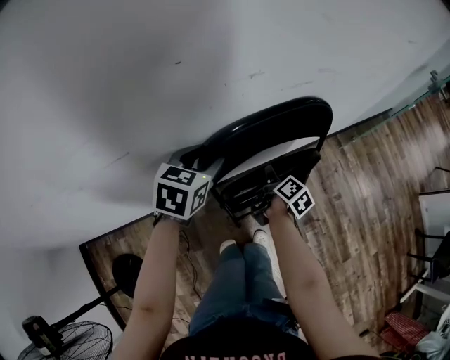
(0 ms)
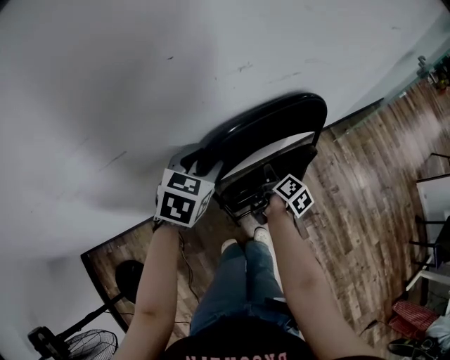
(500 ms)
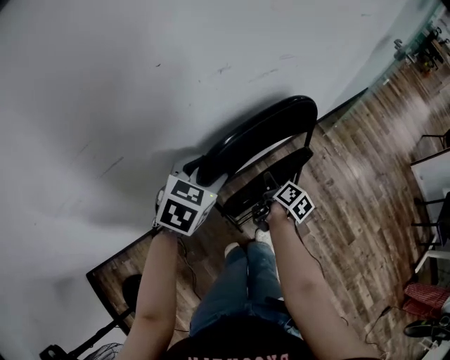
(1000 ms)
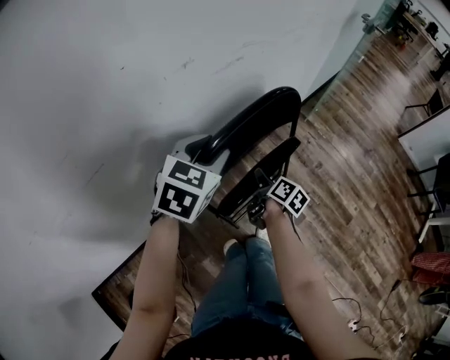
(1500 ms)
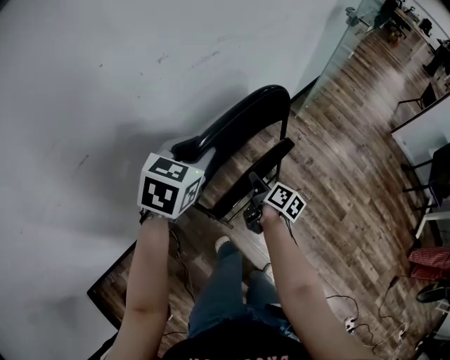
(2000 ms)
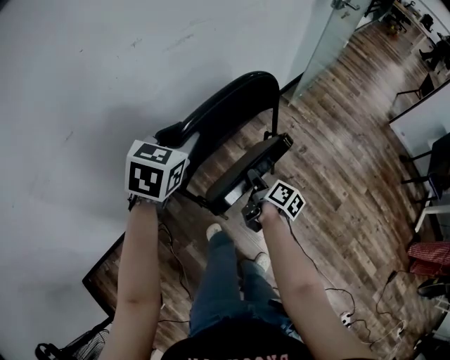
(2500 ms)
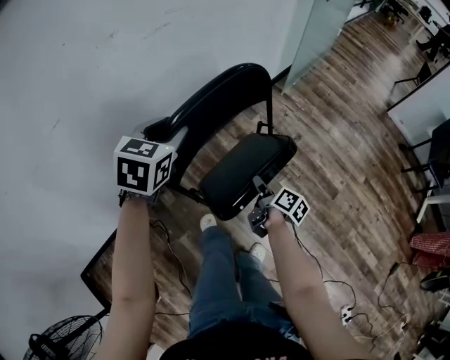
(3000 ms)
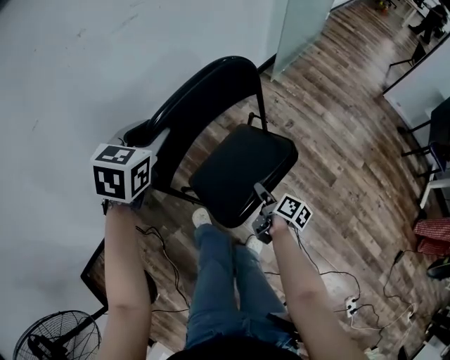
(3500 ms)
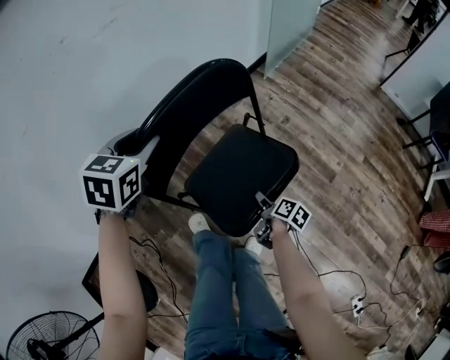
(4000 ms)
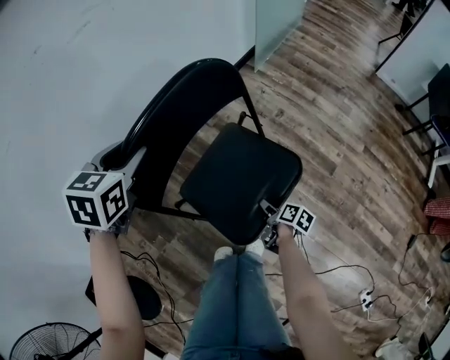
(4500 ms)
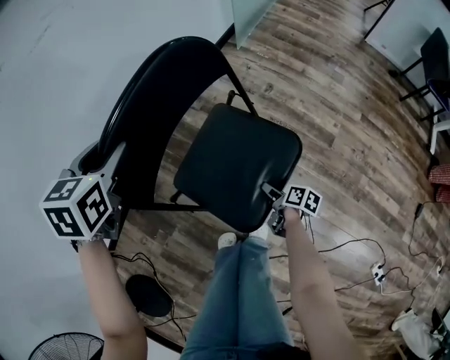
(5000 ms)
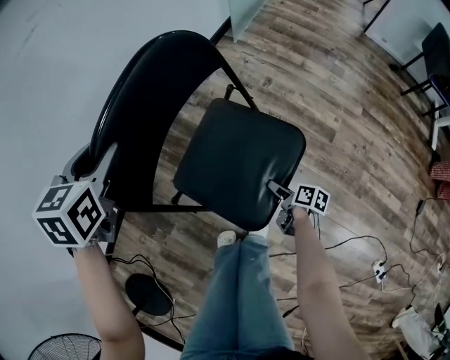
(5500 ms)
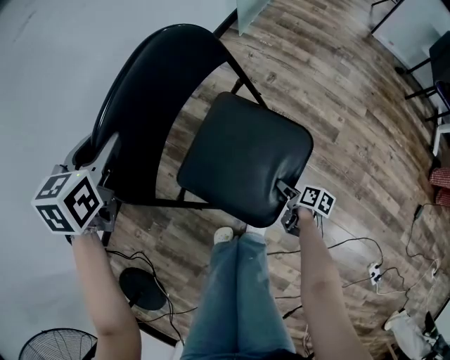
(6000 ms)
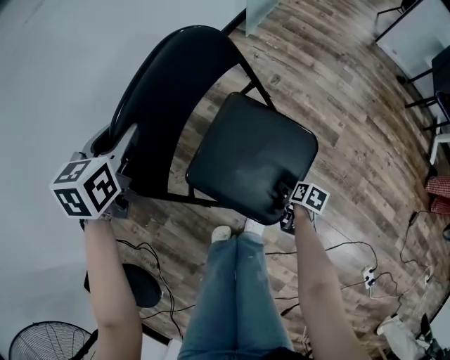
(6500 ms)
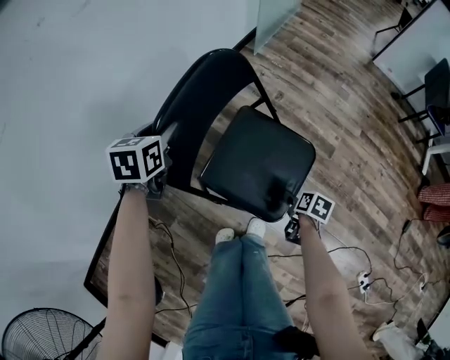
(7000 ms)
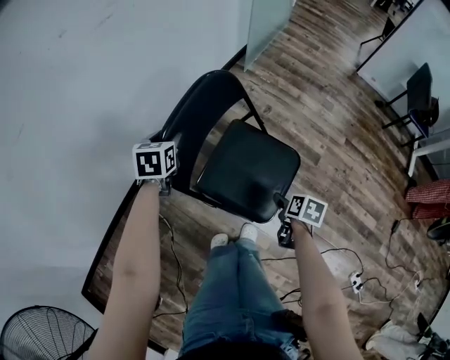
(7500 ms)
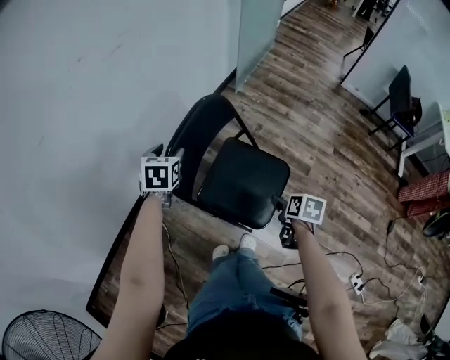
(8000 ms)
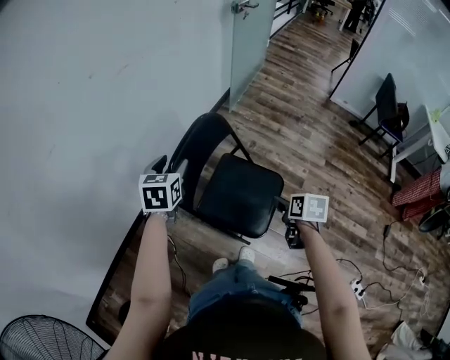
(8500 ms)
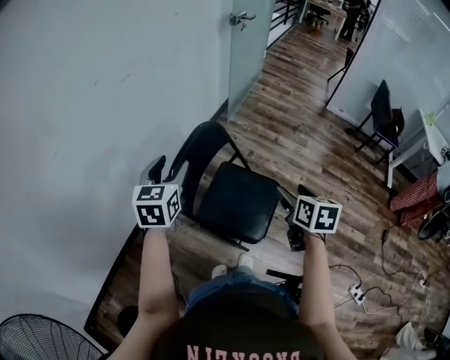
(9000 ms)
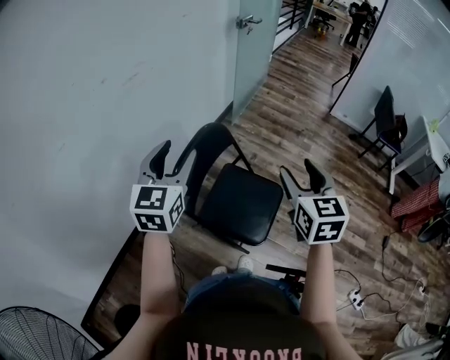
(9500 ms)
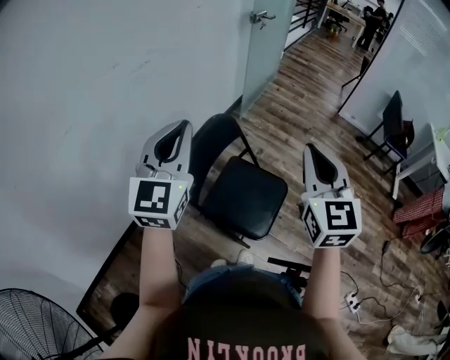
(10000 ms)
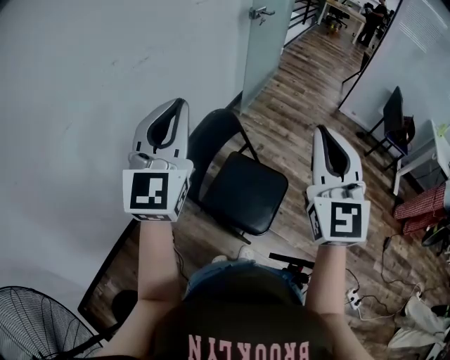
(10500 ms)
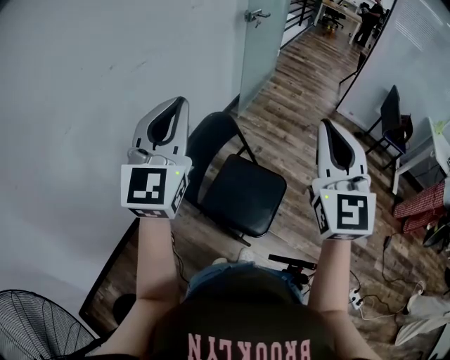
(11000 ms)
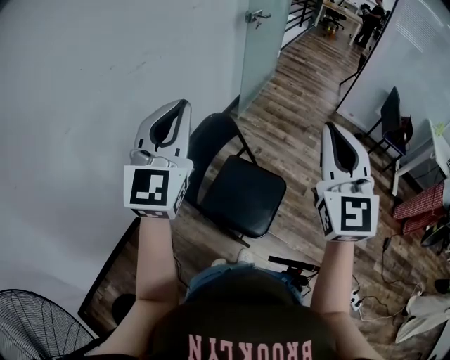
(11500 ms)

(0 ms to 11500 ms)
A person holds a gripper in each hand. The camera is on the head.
0 ms - 2000 ms: The left gripper shifts about 15 cm to the right and upward, and changes its angle by roughly 20 degrees. Meanwhile the right gripper is displaced backward and to the right by approximately 15 cm.
2000 ms - 4000 ms: The right gripper goes roughly 40 cm backward, to the right and downward. Meanwhile the left gripper moves to the right, backward and downward, some 20 cm.
4000 ms - 6000 ms: The left gripper is displaced downward by about 10 cm. Meanwhile the right gripper travels downward, to the right and backward by approximately 20 cm.
6000 ms - 7500 ms: The right gripper is displaced upward by roughly 25 cm, and rotates approximately 30 degrees.
7500 ms - 9500 ms: Both grippers travel together upward, roughly 35 cm. The right gripper points its fingers approximately 40 degrees further upward; the left gripper tips its fingers upward by some 40 degrees.
9500 ms - 11500 ms: Both grippers move upward, about 15 cm. The right gripper rotates roughly 30 degrees, and closes its fingers, while the left gripper rotates about 20 degrees, and closes.

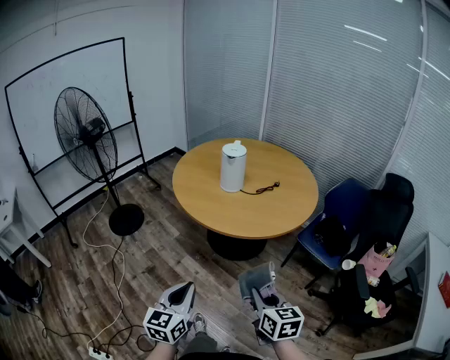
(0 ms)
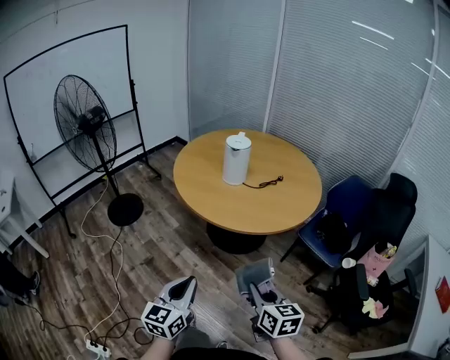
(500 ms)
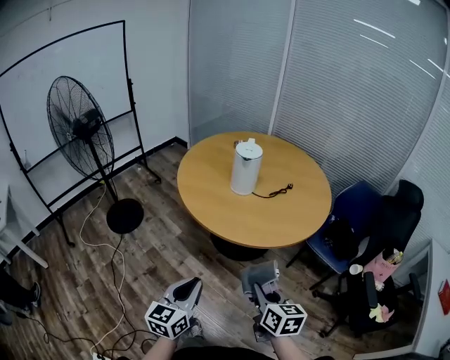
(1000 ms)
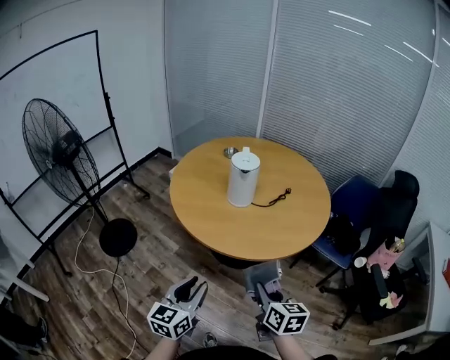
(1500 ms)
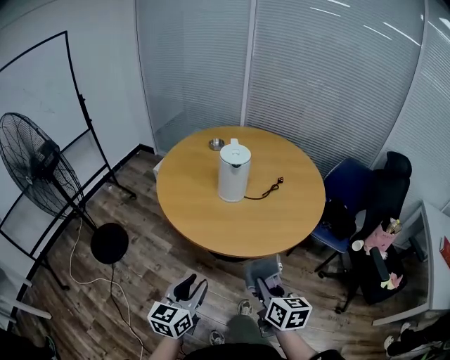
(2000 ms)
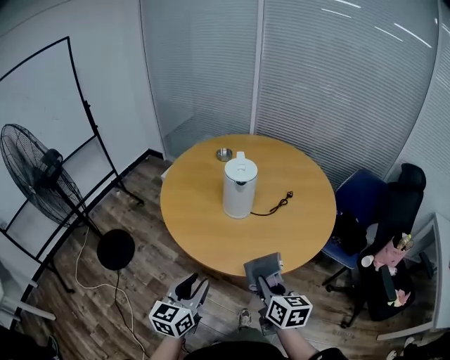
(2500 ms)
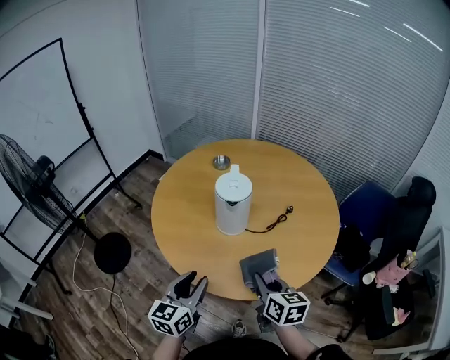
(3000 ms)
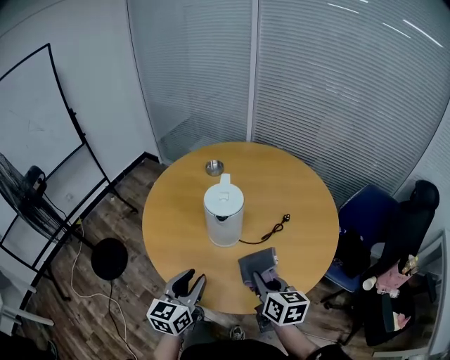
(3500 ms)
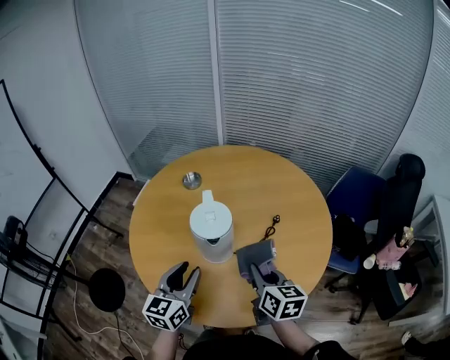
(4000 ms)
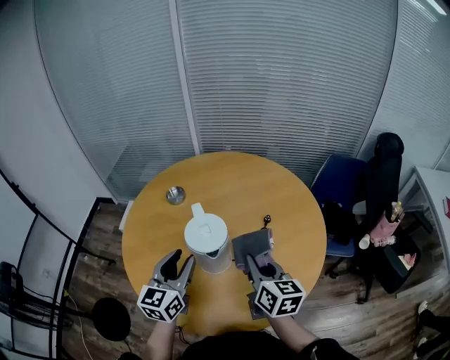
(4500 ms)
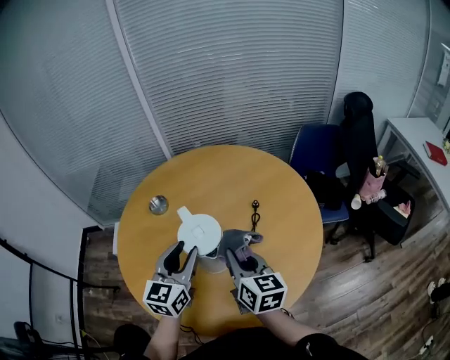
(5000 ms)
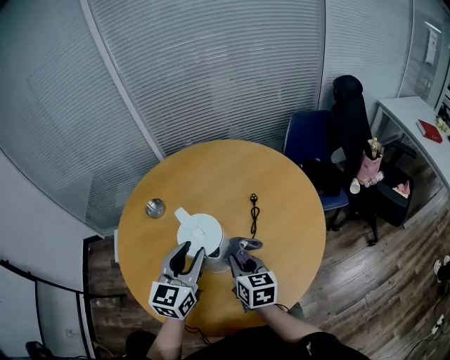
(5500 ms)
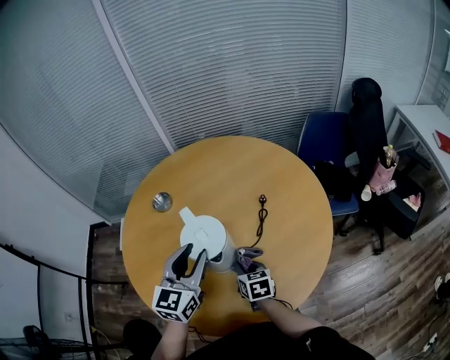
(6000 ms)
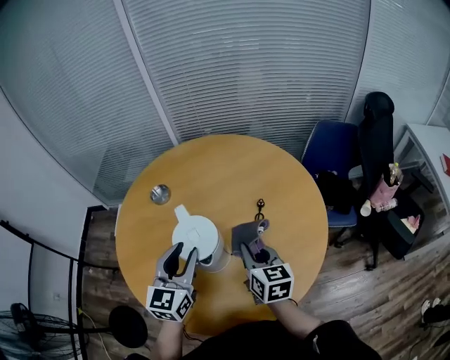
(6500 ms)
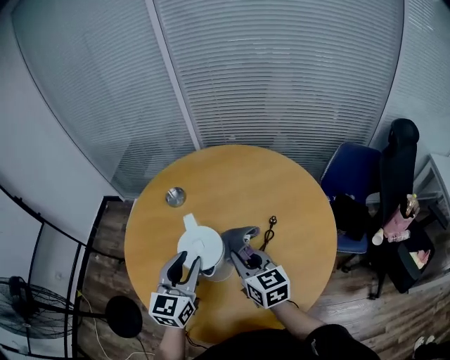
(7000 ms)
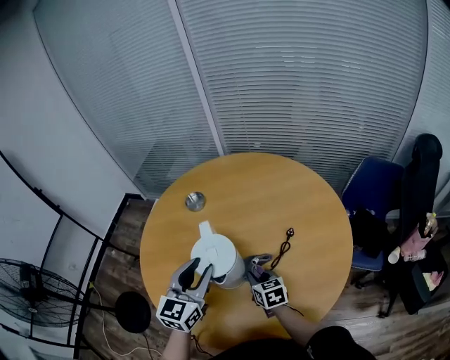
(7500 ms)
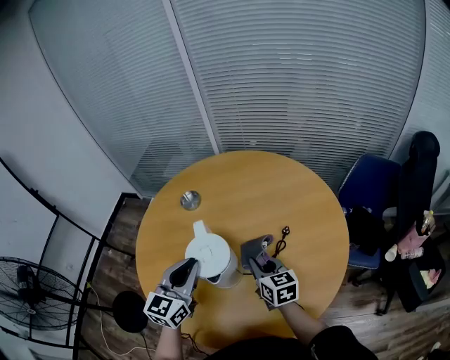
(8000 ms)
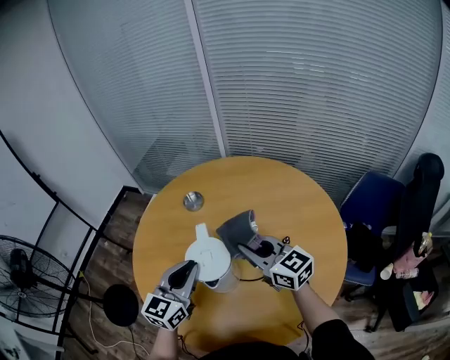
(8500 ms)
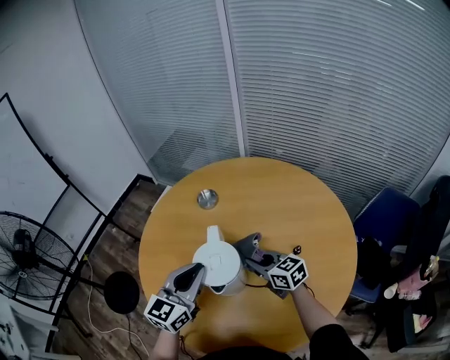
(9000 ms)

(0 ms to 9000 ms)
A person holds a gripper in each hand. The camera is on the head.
0 ms - 2000 ms: The grippers both shift forward and to the left by roughly 25 cm. The left gripper turns by approximately 20 degrees, and opens its fingers, while the right gripper turns by some 20 degrees.
2000 ms - 4500 ms: Both grippers move forward, roughly 40 cm. The right gripper changes its angle by approximately 20 degrees.
4500 ms - 7000 ms: The left gripper changes place by some 5 cm; the right gripper travels downward and back again, some 20 cm each way.
7000 ms - 9000 ms: The right gripper goes up and down, approximately 20 cm each way, reversing 2 times, and swivels roughly 40 degrees. The left gripper closes its fingers.

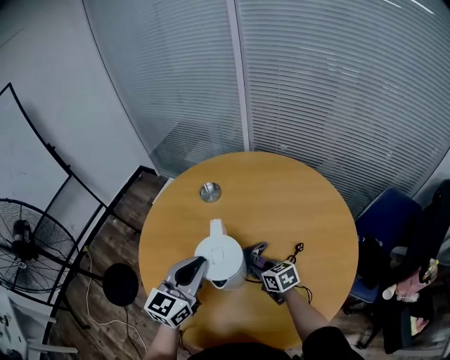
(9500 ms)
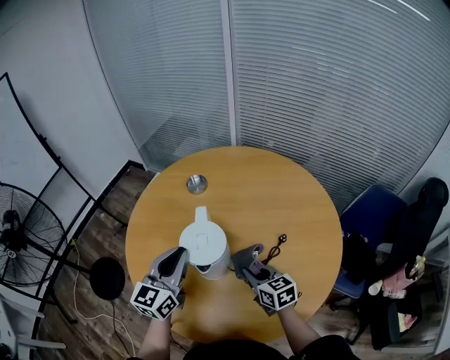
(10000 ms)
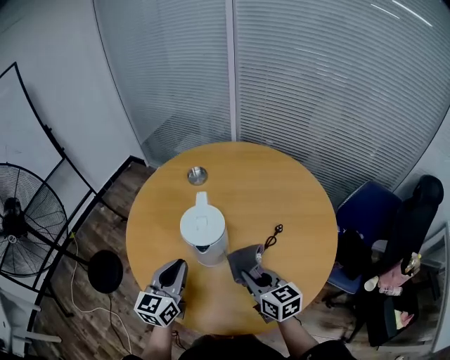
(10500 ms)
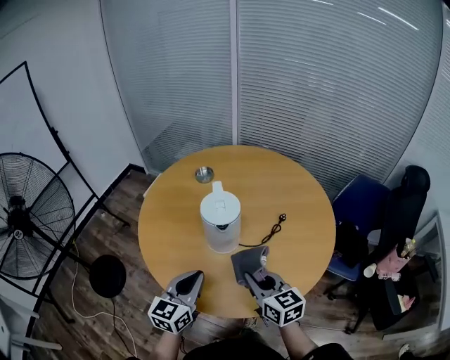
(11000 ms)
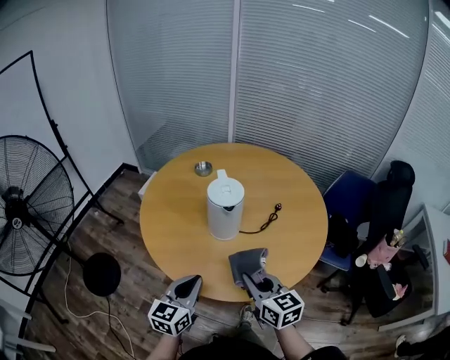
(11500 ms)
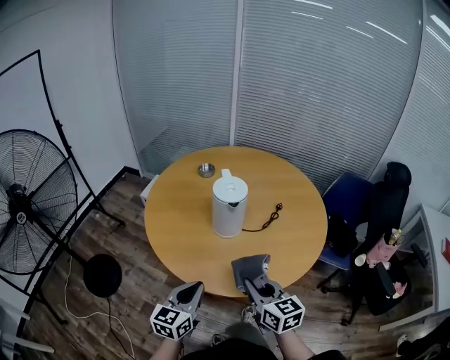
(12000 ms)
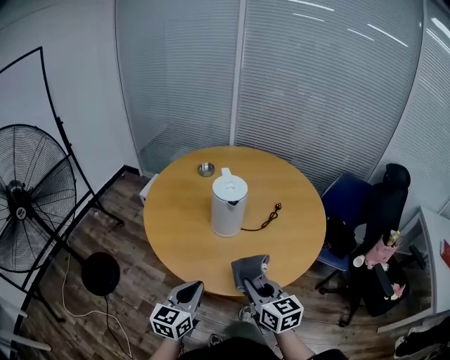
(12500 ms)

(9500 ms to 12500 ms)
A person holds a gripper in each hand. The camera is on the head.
9500 ms - 11000 ms: The right gripper travels backward and upward by approximately 30 cm, and changes its angle by roughly 20 degrees, while the left gripper is displaced backward by approximately 20 cm.
11000 ms - 12500 ms: Both grippers move backward, roughly 15 cm.

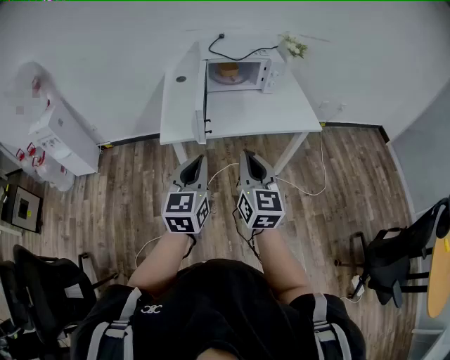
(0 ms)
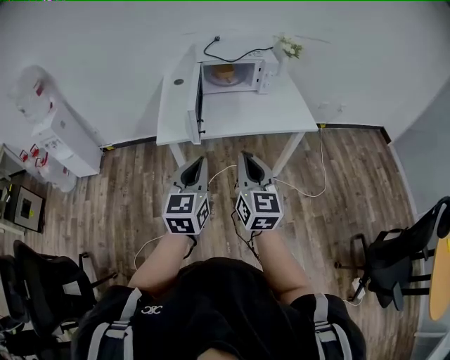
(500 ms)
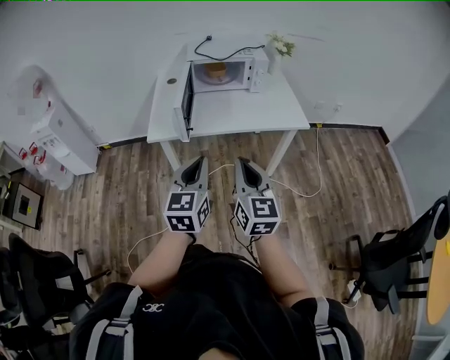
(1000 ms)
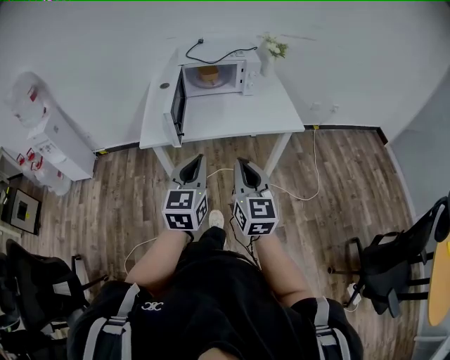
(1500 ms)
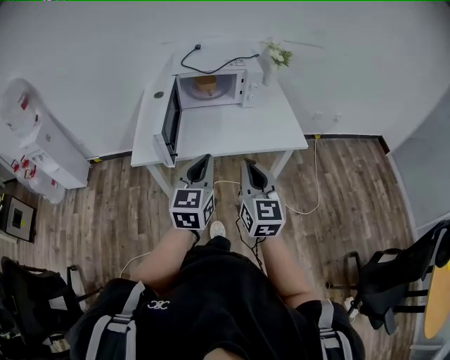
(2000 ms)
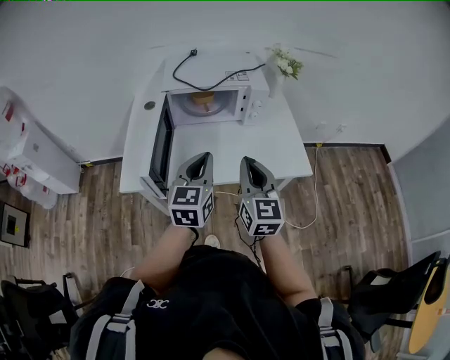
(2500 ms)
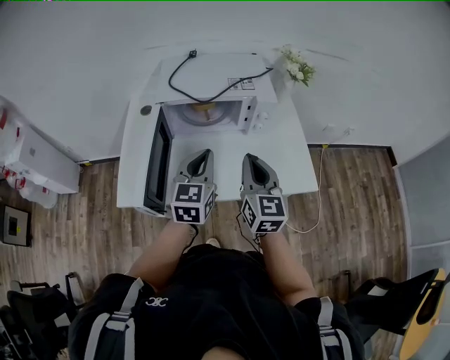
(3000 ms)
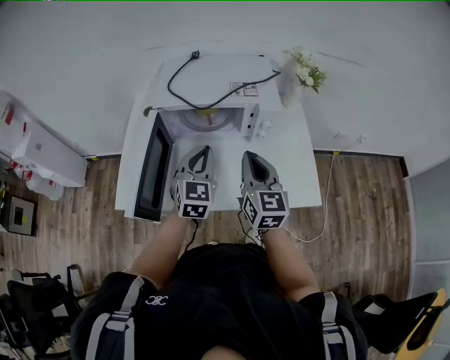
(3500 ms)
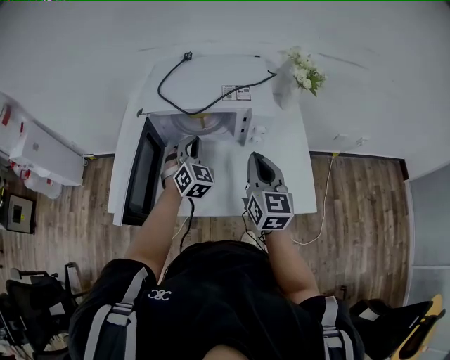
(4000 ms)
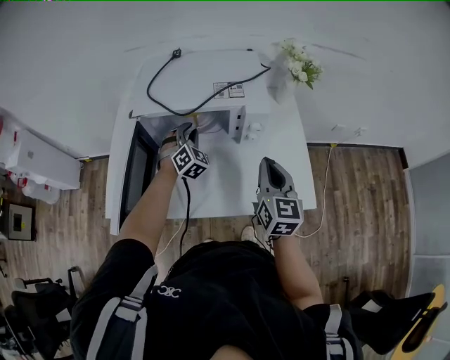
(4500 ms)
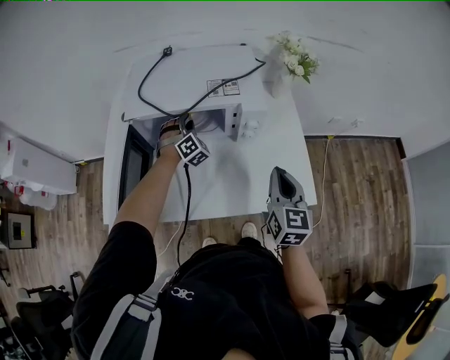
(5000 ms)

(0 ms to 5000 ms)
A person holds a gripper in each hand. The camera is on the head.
0 ms - 2500 ms: The grippers both shift forward and to the right by about 35 cm.
2500 ms - 5000 ms: The left gripper goes roughly 50 cm forward and downward, rolls clockwise, seen from behind, by approximately 60 degrees, and opens up. Meanwhile the right gripper moves forward, to the right and downward, approximately 30 cm.
